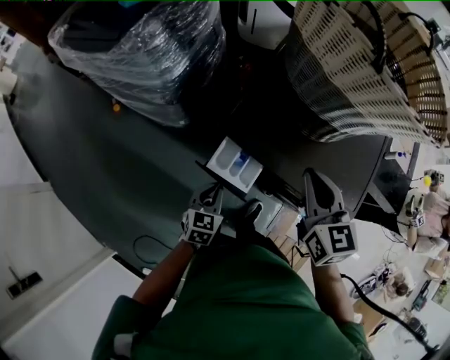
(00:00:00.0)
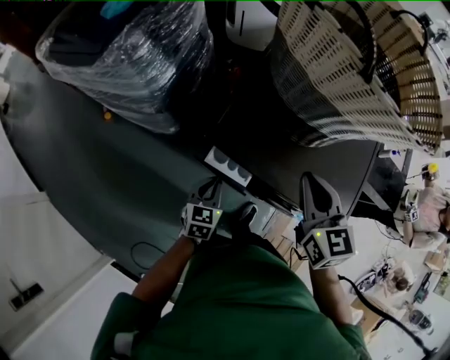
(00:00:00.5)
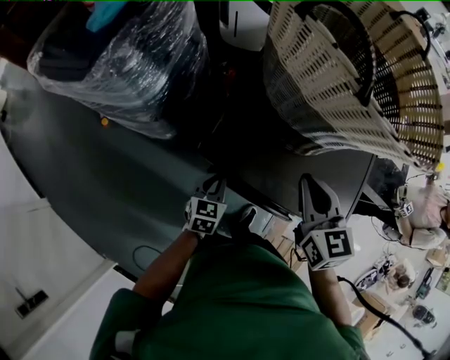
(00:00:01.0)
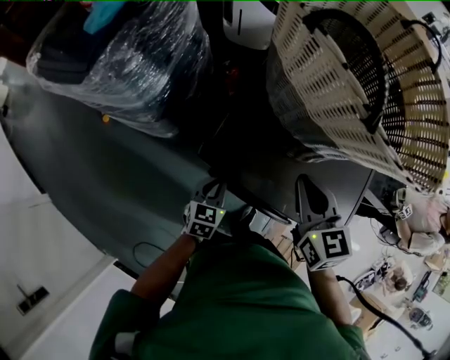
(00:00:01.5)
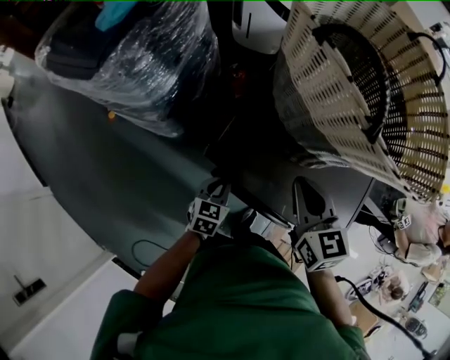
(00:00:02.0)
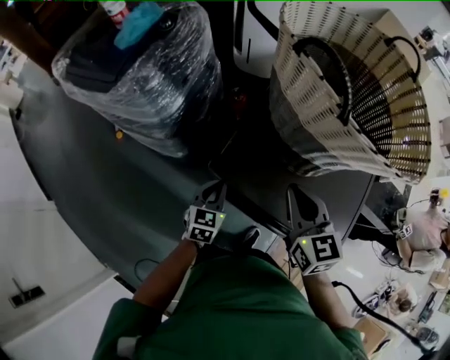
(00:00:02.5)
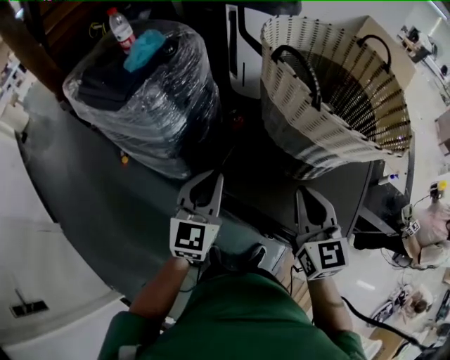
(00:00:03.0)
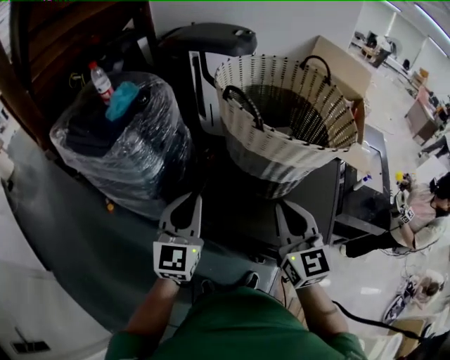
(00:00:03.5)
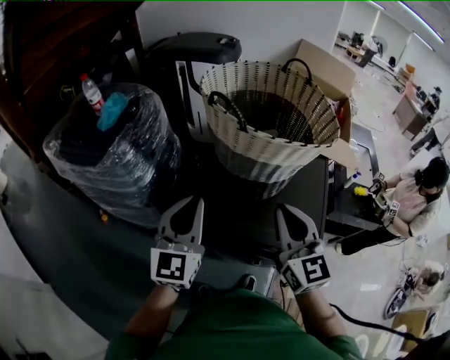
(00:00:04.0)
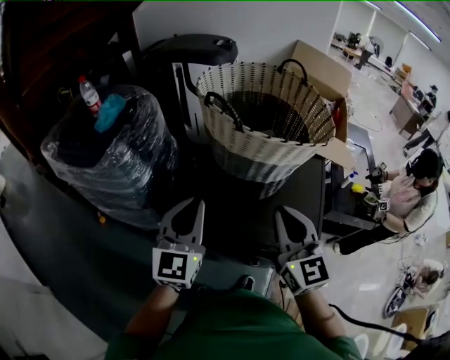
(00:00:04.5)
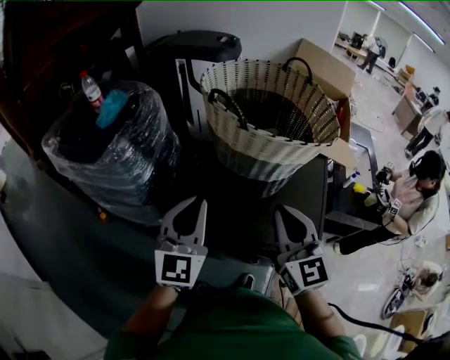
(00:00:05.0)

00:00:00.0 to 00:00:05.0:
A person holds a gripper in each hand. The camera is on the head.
00:00:00.0 to 00:00:02.5: The right gripper heads forward, covering about 5 cm, while the left gripper goes about 15 cm forward and upward.
00:00:02.5 to 00:00:05.0: The left gripper travels upward by about 30 cm, and tilts its fingers roughly 40 degrees upward, while the right gripper moves upward and backward, some 15 cm, and rotates roughly 20 degrees.

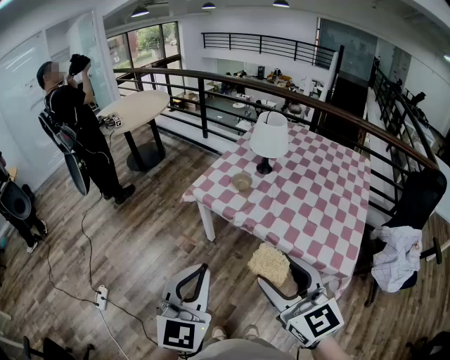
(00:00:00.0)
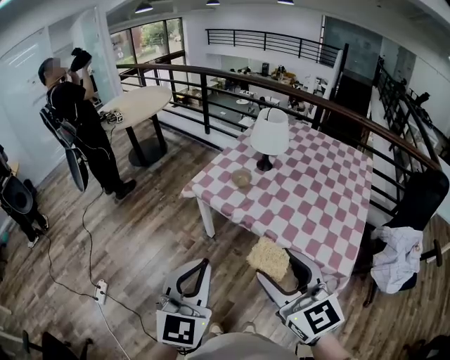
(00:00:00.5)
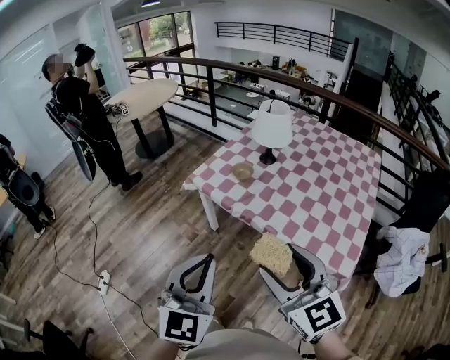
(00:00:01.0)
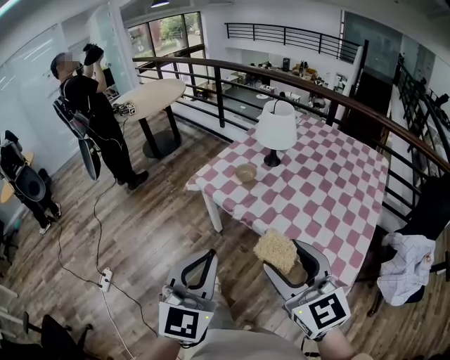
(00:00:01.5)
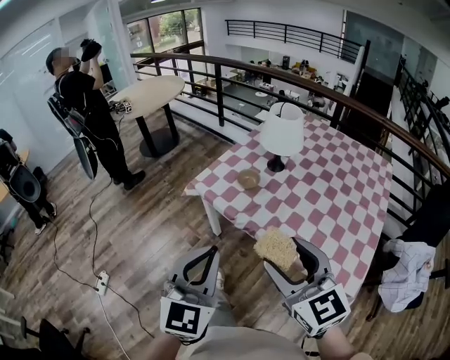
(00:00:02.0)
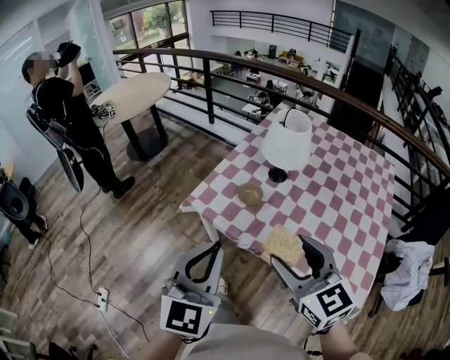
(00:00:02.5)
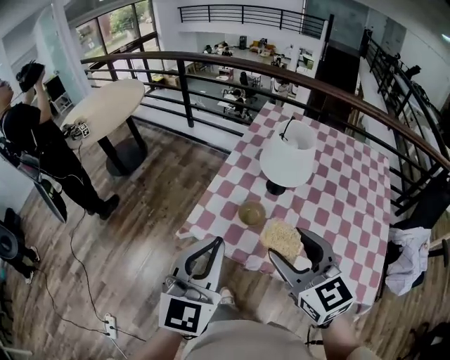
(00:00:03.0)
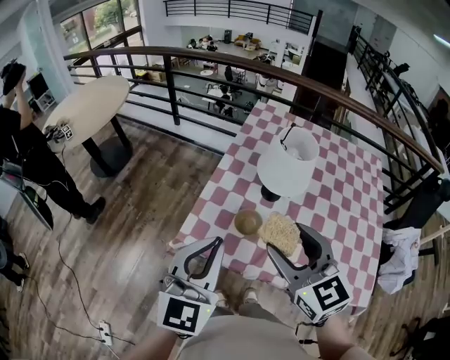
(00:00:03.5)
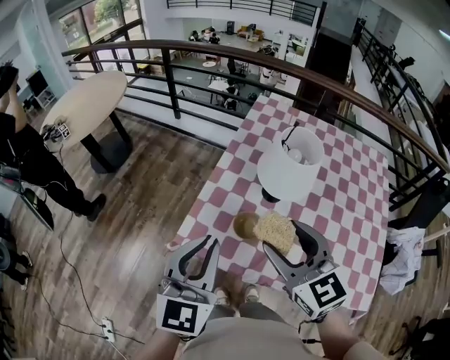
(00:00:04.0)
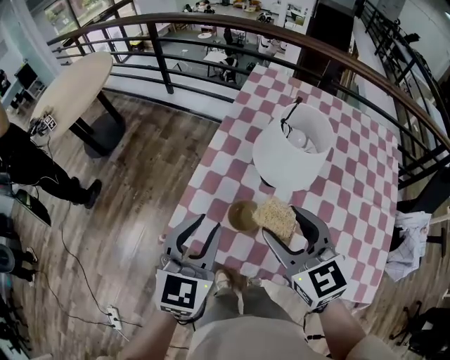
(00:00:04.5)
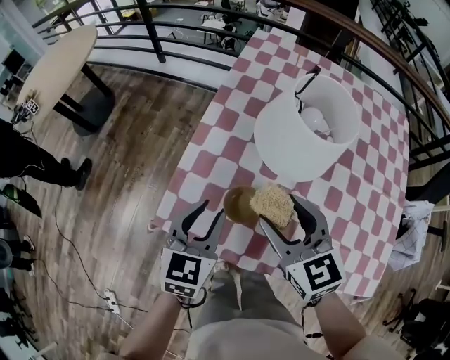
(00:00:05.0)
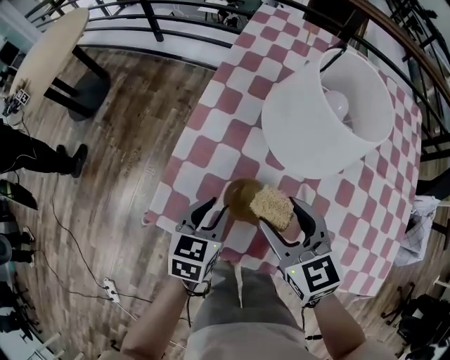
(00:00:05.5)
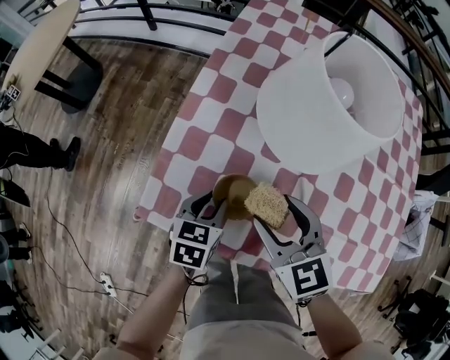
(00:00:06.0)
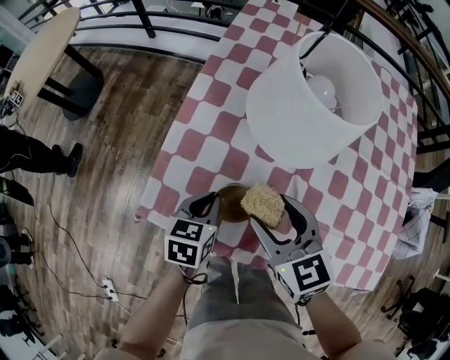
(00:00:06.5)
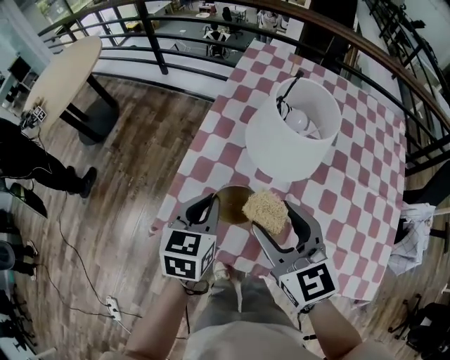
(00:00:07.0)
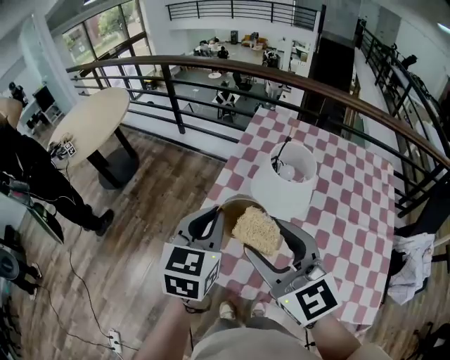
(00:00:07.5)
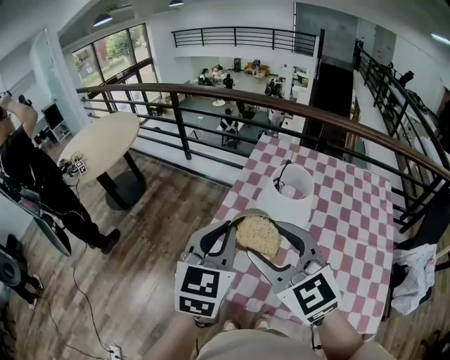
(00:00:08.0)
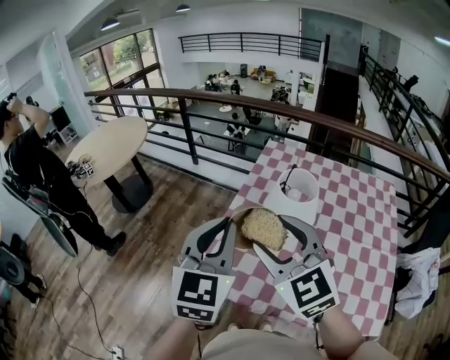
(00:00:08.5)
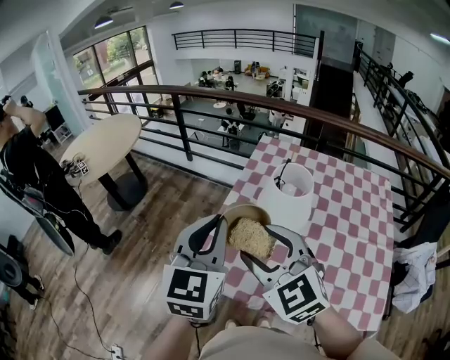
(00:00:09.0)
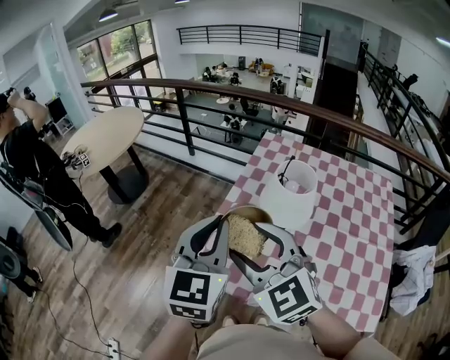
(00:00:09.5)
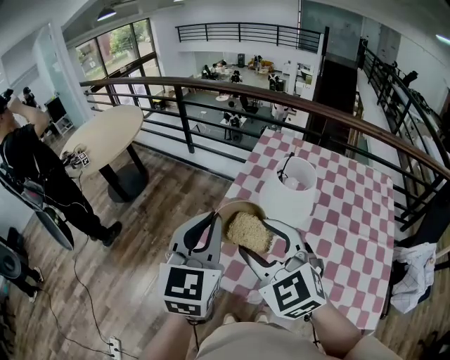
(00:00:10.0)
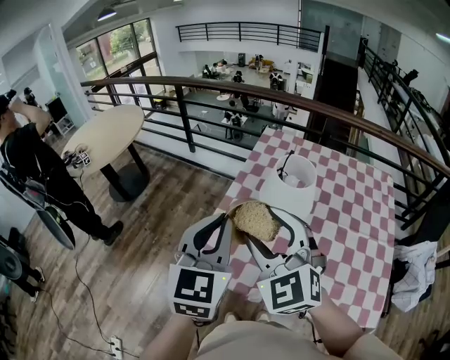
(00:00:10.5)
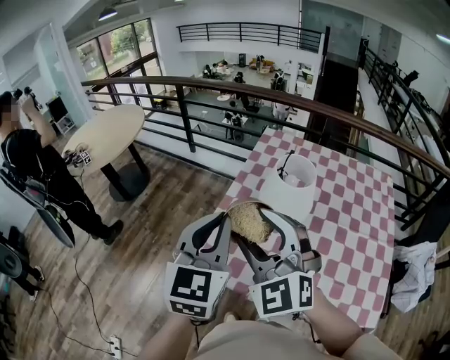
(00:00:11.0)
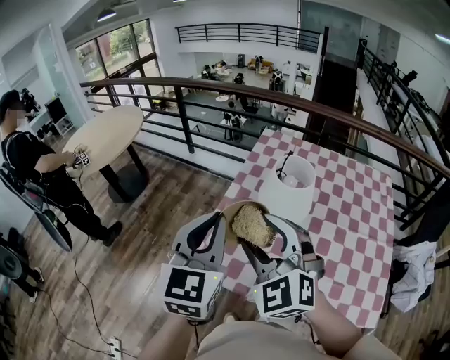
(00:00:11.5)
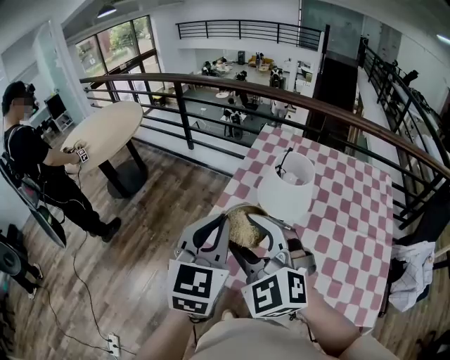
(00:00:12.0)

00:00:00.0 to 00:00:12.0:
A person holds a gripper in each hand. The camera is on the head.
00:00:00.0 to 00:00:02.0: Both grippers travel together forward and to the right, roughly 10 cm.
00:00:02.0 to 00:00:04.0: The grippers both shift forward by approximately 35 cm.
00:00:04.0 to 00:00:06.0: The two grippers go approximately 30 cm downward. The left gripper angles its fingers downward, by about 40 degrees, and opens up.
00:00:06.0 to 00:00:08.0: The grippers both shift upward by some 40 cm. The right gripper rotates roughly 30 degrees; the left gripper angles its fingers upward, by approximately 30 degrees, and closes.
00:00:08.0 to 00:00:10.0: The left gripper shifts by roughly 5 cm.
00:00:10.0 to 00:00:12.0: The grippers make only small movements.

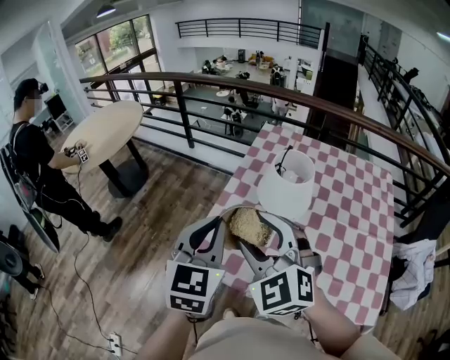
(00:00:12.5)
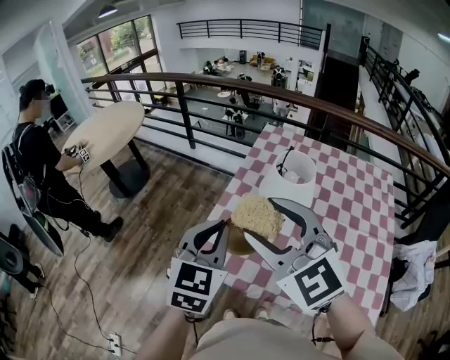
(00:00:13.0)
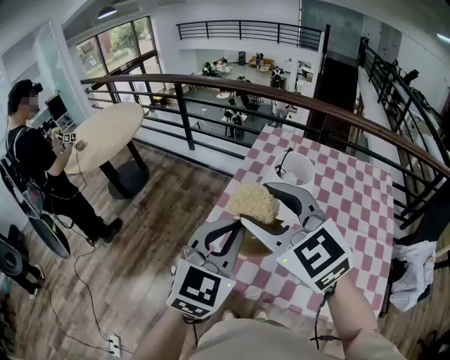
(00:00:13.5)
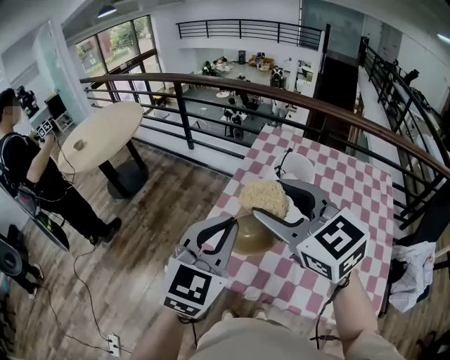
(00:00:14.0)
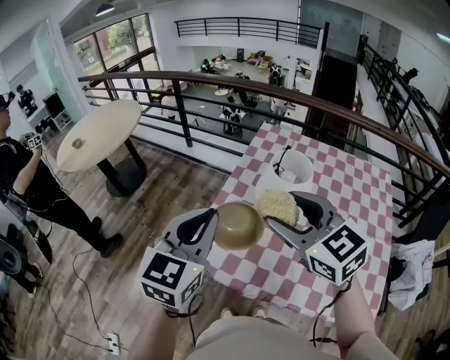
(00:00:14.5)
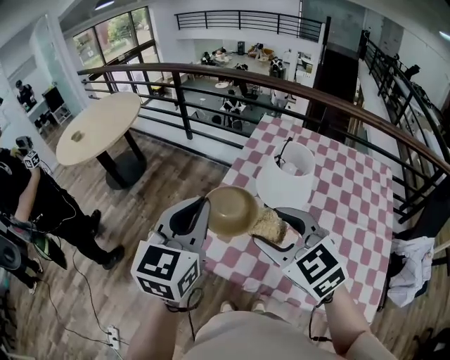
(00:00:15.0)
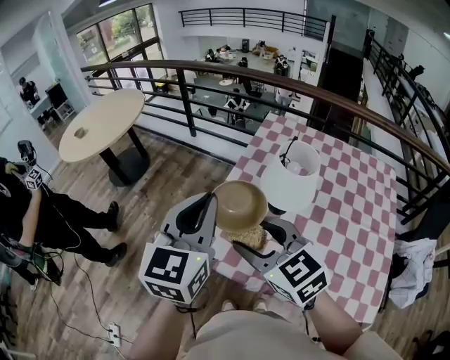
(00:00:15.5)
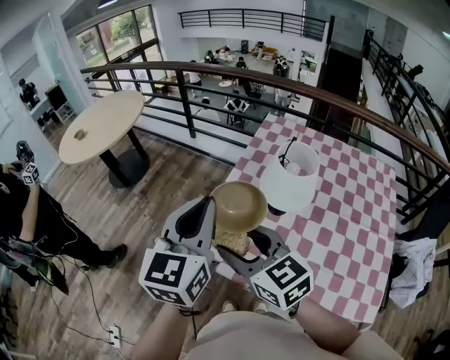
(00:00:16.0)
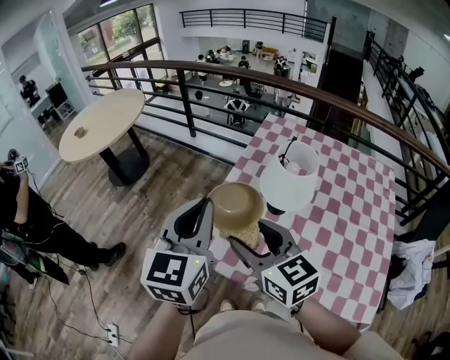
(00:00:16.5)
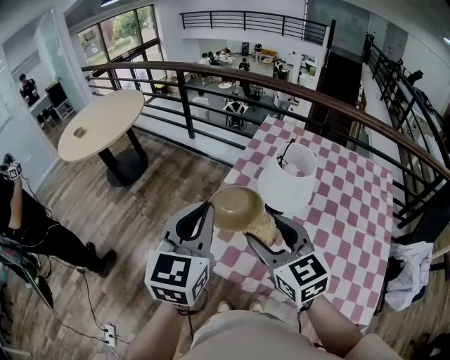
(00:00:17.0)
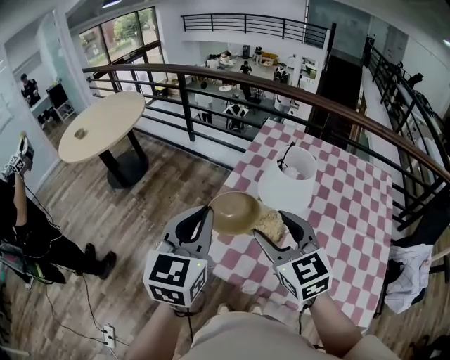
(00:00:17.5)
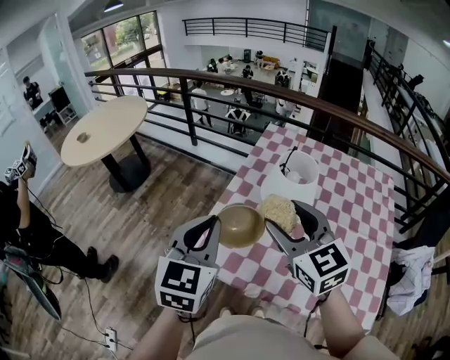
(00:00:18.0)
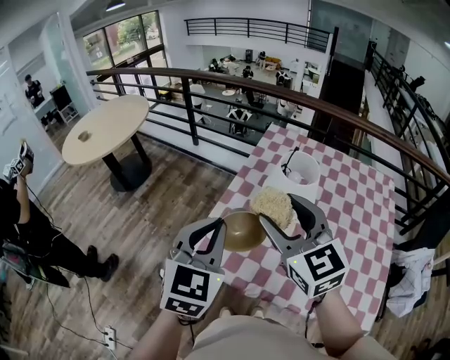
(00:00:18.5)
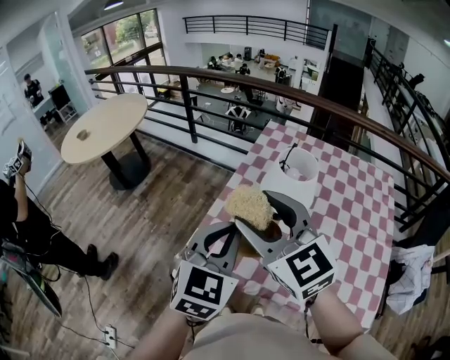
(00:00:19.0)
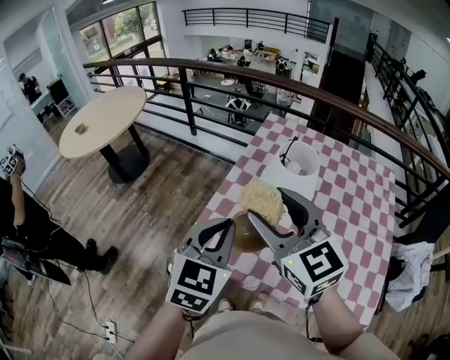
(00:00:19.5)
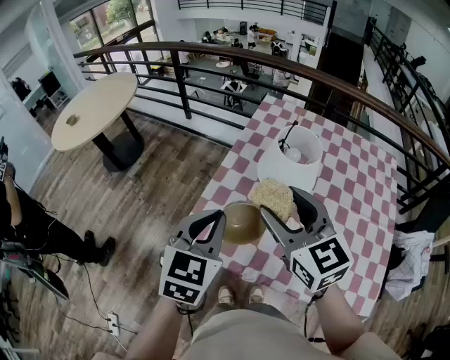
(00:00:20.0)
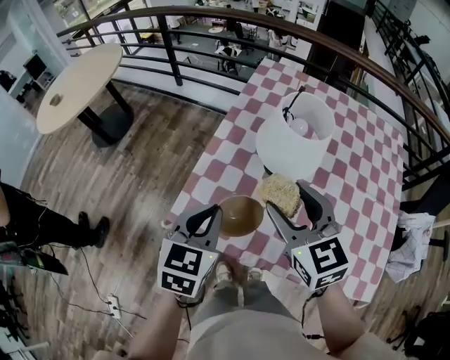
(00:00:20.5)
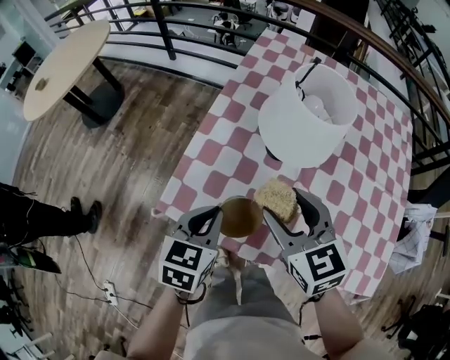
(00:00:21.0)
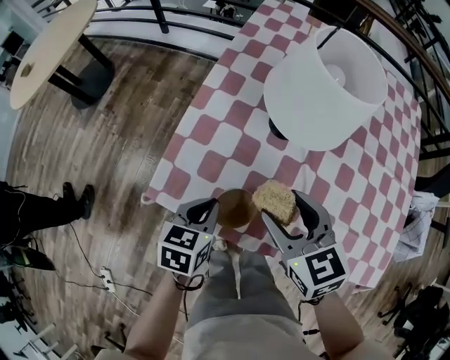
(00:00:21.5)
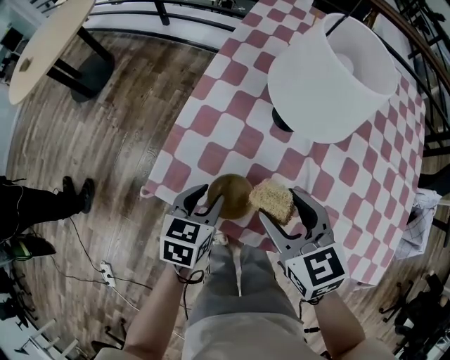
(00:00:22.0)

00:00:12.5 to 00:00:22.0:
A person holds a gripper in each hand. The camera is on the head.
00:00:12.5 to 00:00:14.5: The right gripper is displaced to the right by about 5 cm, and changes its angle by some 30 degrees.
00:00:14.5 to 00:00:16.5: The right gripper heads to the left and downward, covering some 10 cm.
00:00:16.5 to 00:00:18.0: The right gripper heads to the right and upward, covering some 10 cm.
00:00:18.0 to 00:00:20.0: The left gripper goes some 5 cm downward.
00:00:20.0 to 00:00:22.0: Both grippers move downward, some 30 cm. The left gripper turns by approximately 30 degrees, and opens. The right gripper swivels roughly 20 degrees.
